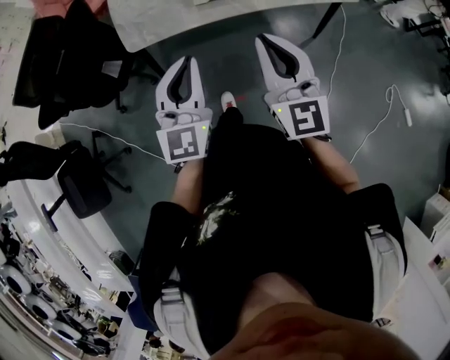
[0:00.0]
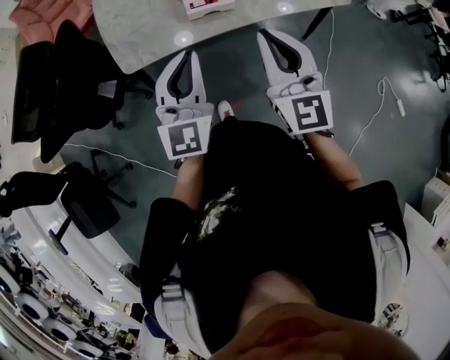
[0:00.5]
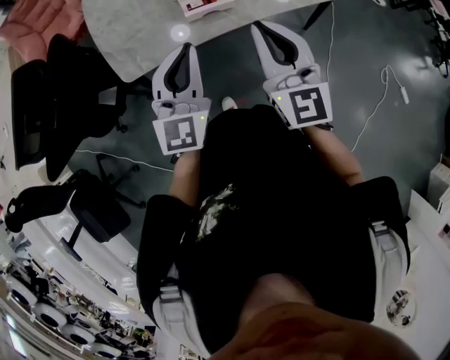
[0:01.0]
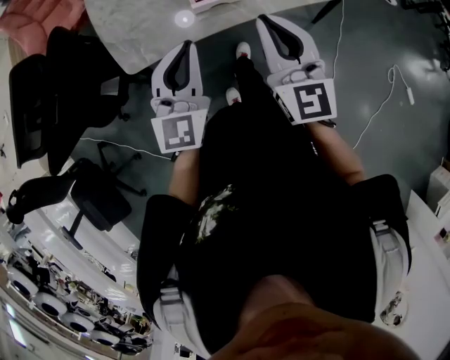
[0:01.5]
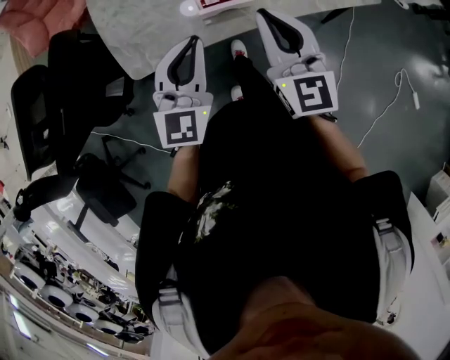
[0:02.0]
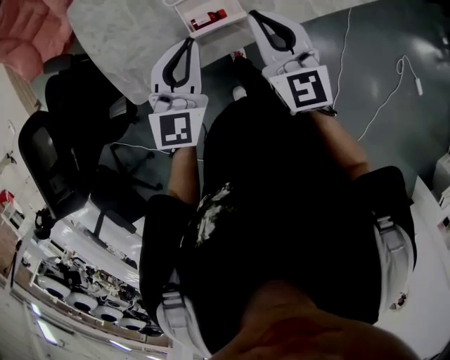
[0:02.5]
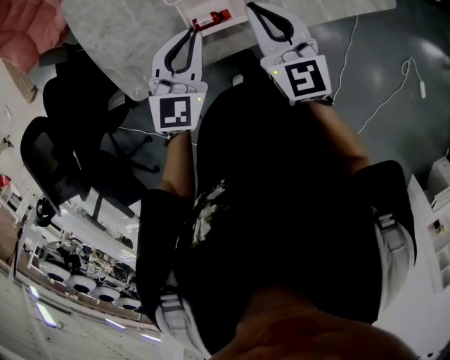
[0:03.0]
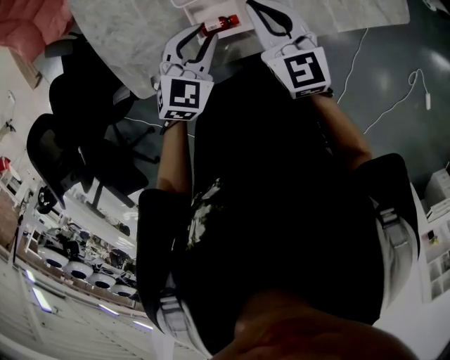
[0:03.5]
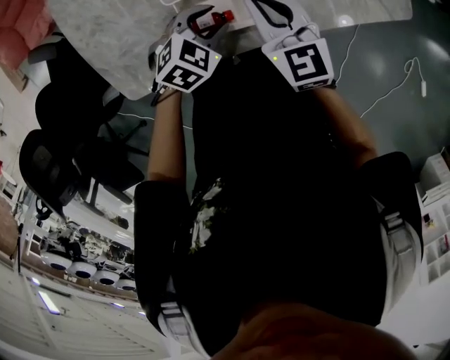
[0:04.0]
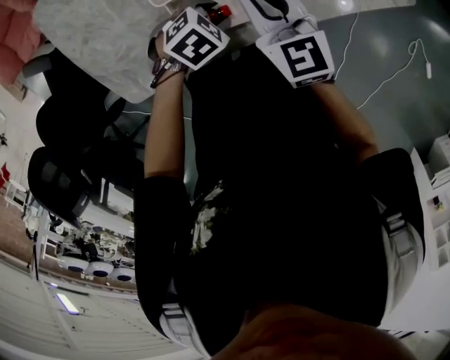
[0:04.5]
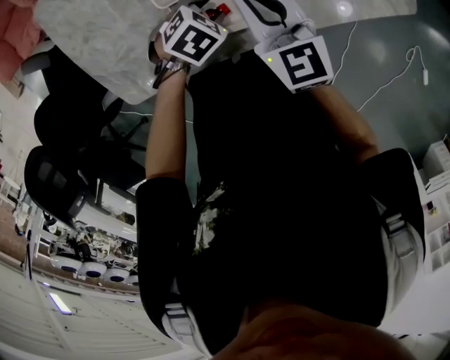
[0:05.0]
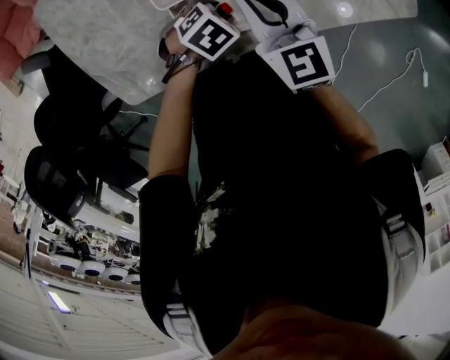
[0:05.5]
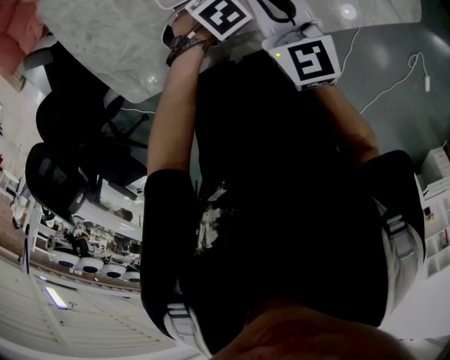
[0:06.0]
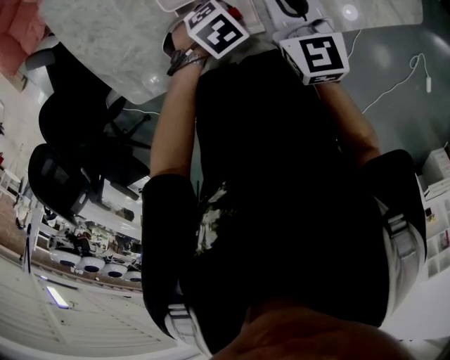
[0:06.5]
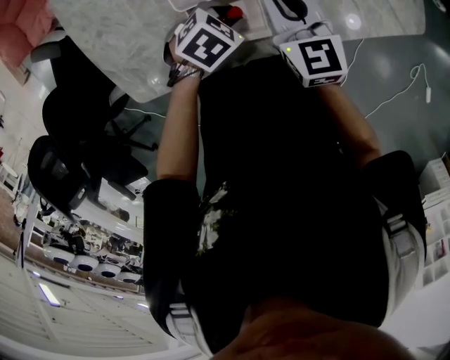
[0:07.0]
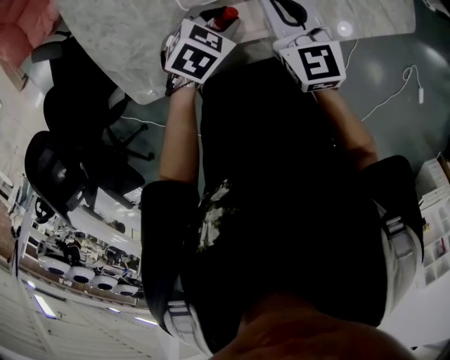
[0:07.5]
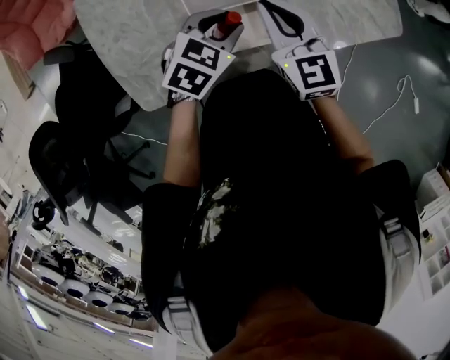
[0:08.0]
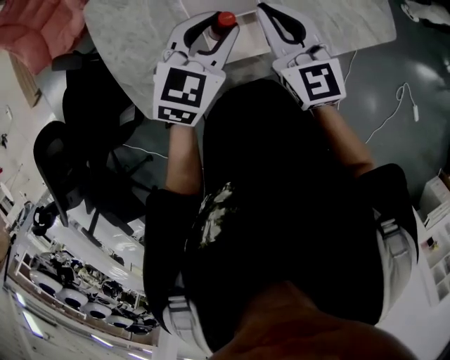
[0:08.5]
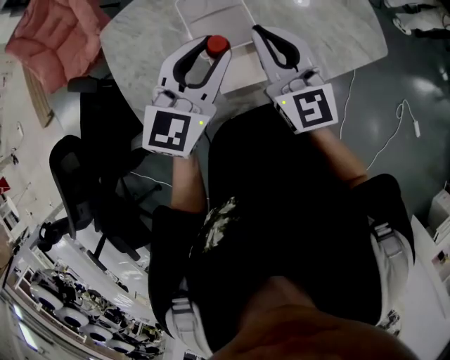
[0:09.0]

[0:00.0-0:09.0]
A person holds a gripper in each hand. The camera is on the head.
0:00.0 to 0:02.0: The grippers both shift forward by some 25 cm.
0:02.0 to 0:04.5: The left gripper travels downward by approximately 30 cm, tilts its fingers some 50 degrees downward, and opens; the right gripper shifts by roughly 30 cm, and changes its angle by some 20 degrees.
0:04.5 to 0:07.0: There are only small adjustments of the grippers.
0:07.0 to 0:09.0: The right gripper shifts some 20 cm upward, and turns by approximately 20 degrees; the left gripper moves upward, approximately 35 cm, and points its fingers some 50 degrees further upward.

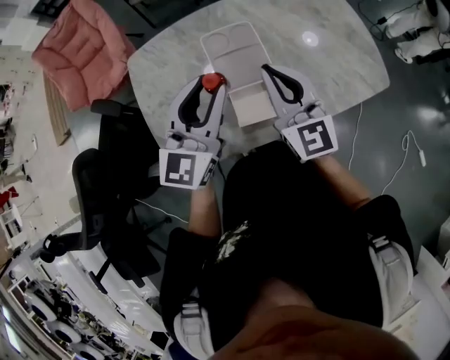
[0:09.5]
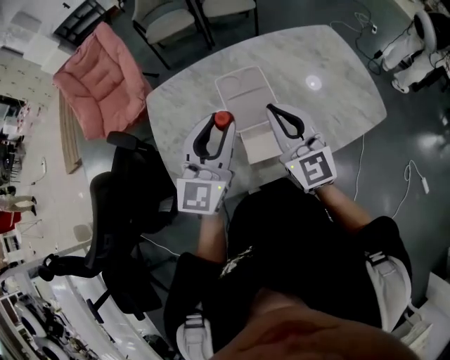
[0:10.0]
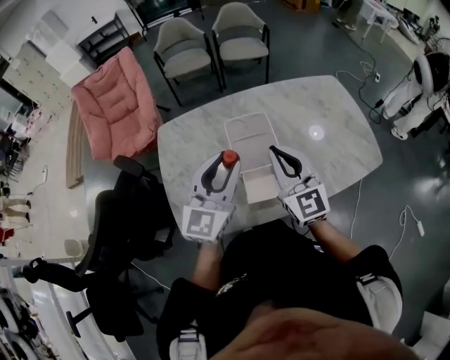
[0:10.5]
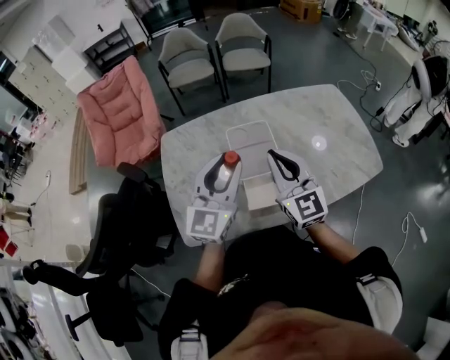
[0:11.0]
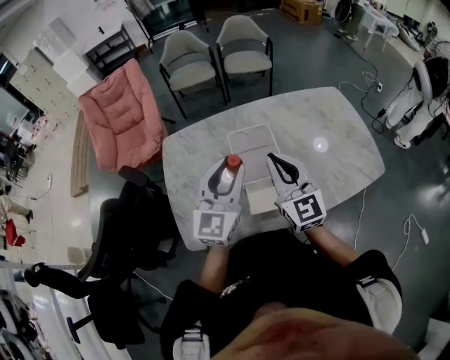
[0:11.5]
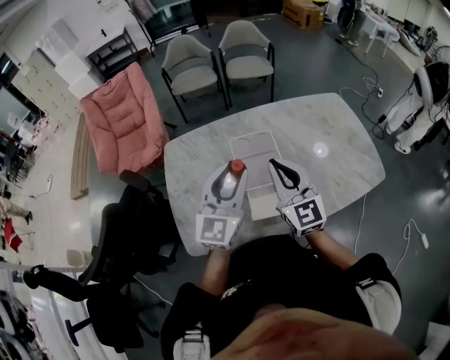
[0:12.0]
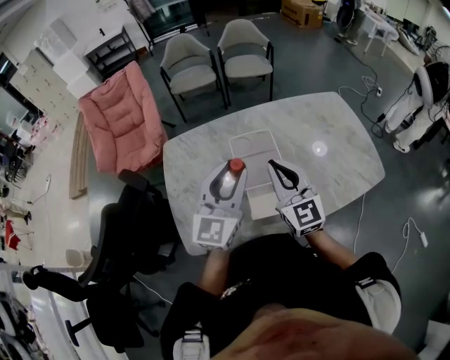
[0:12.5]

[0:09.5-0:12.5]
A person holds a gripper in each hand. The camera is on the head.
0:09.5 to 0:12.5: The grippers move only a little.

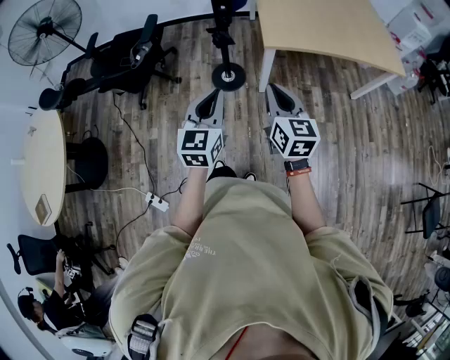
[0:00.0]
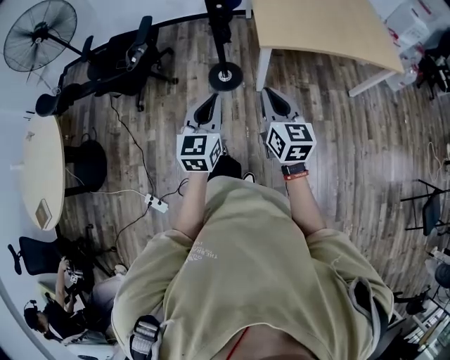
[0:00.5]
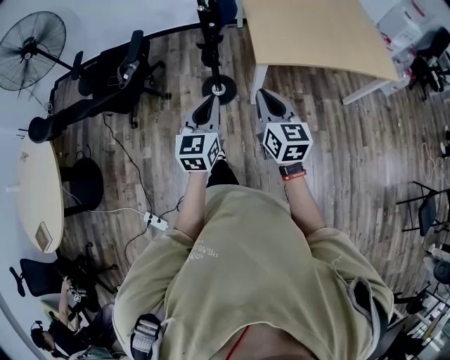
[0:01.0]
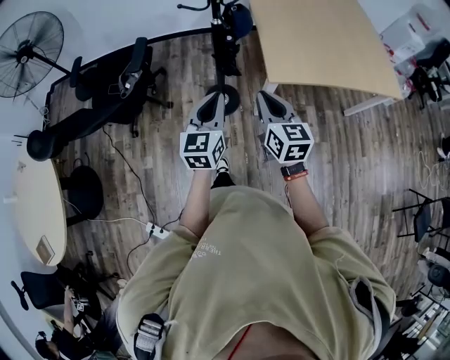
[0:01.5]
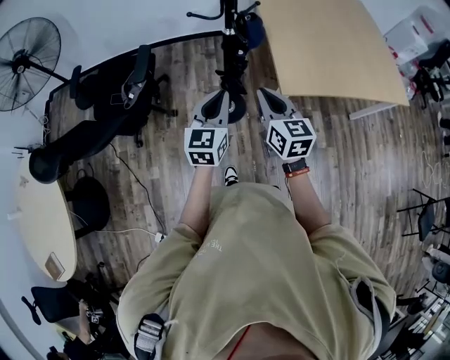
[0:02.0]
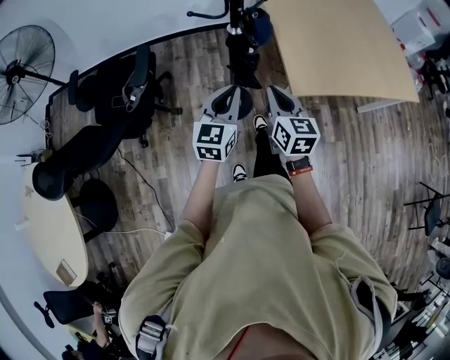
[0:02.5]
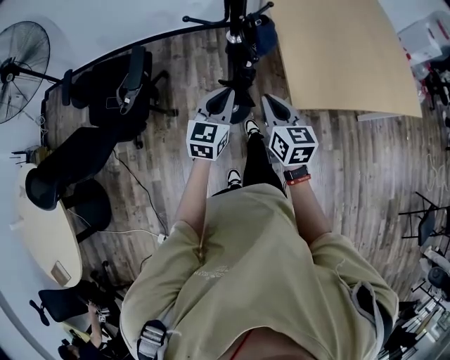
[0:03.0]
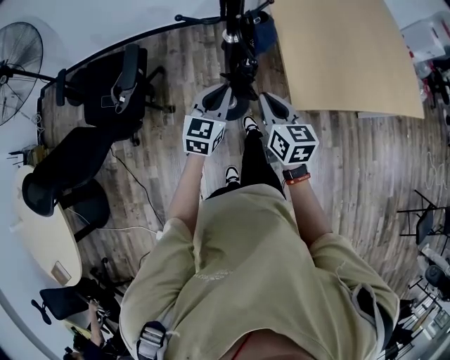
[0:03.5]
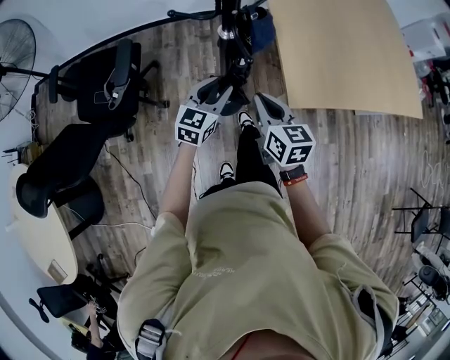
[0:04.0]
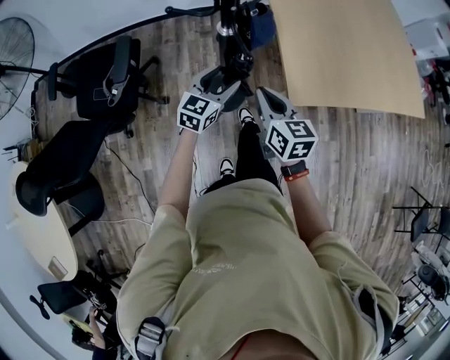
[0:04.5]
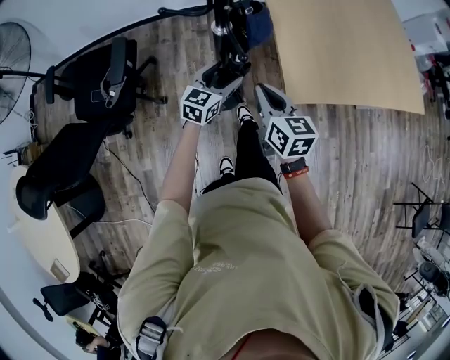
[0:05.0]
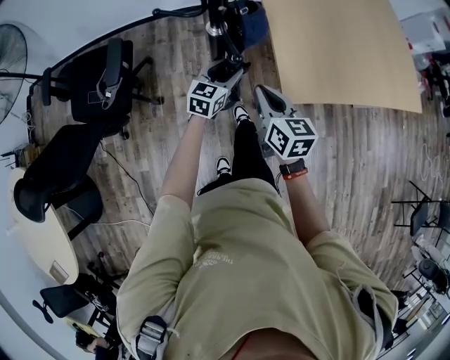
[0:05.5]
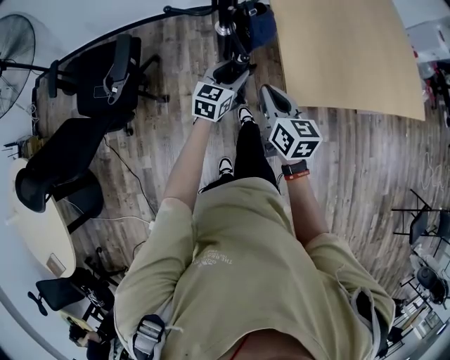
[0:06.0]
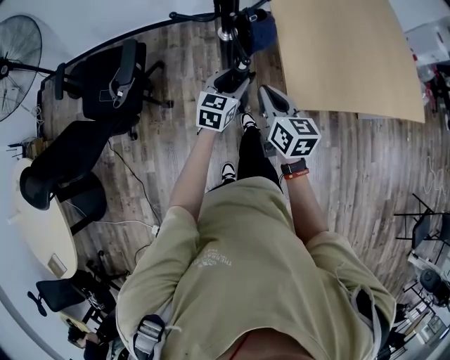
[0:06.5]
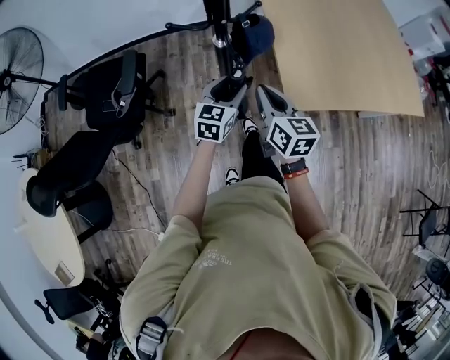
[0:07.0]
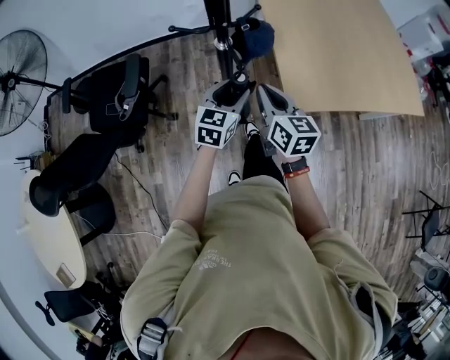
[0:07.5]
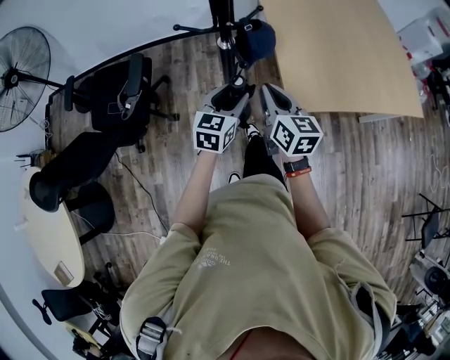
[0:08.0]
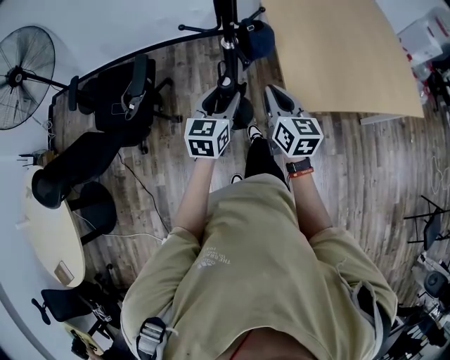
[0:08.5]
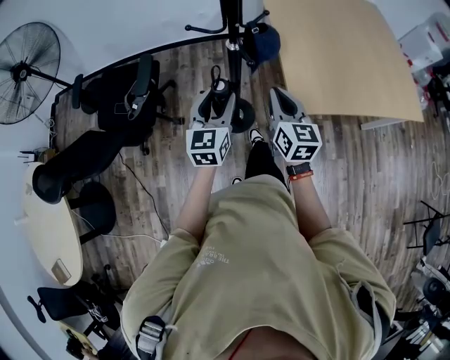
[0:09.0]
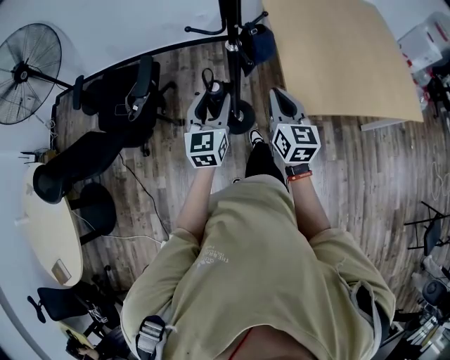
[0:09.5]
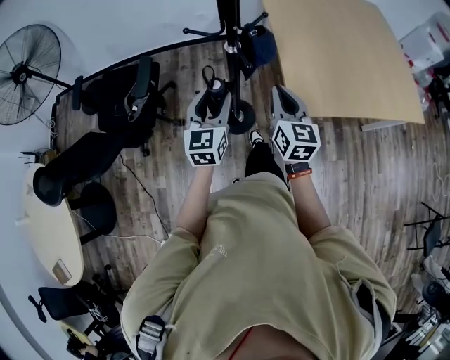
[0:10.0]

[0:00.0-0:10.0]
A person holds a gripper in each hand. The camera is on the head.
0:00.0 to 0:02.0: The left gripper moves forward, about 35 cm; the right gripper moves forward and to the left, about 35 cm.
0:02.0 to 0:04.0: The two grippers go some 25 cm forward and downward. The left gripper opens its fingers.
0:04.0 to 0:06.0: The left gripper is displaced forward by some 5 cm.
0:06.0 to 0:08.0: The left gripper is displaced upward and backward by about 15 cm. Meanwhile the right gripper heads upward, covering some 5 cm.
0:08.0 to 0:10.0: The left gripper travels to the left and upward by roughly 10 cm, and rotates approximately 20 degrees.

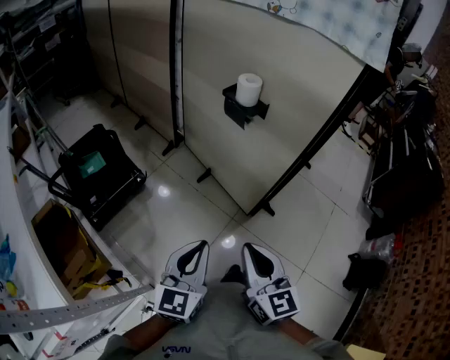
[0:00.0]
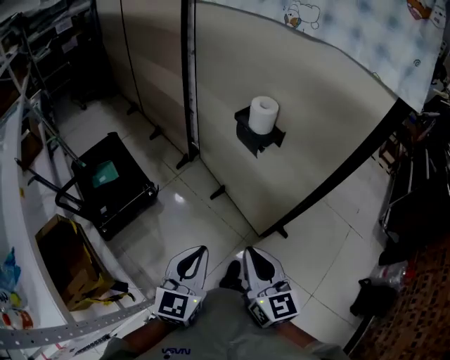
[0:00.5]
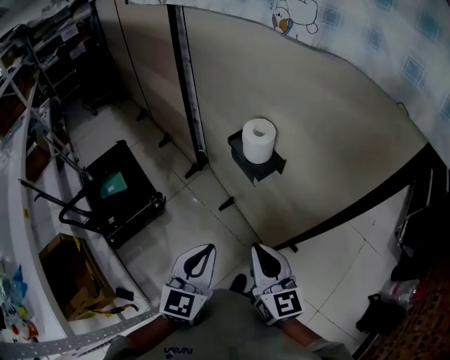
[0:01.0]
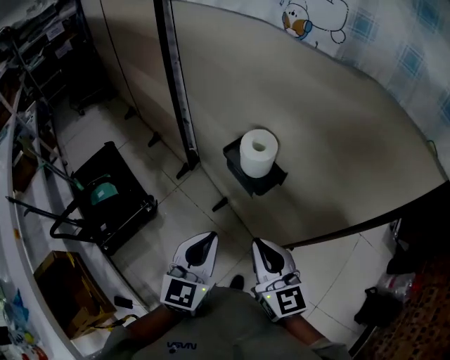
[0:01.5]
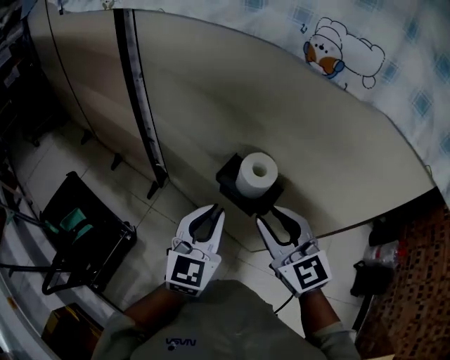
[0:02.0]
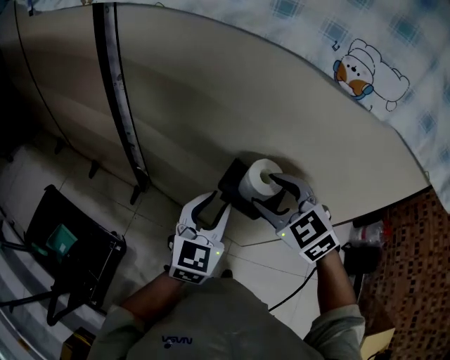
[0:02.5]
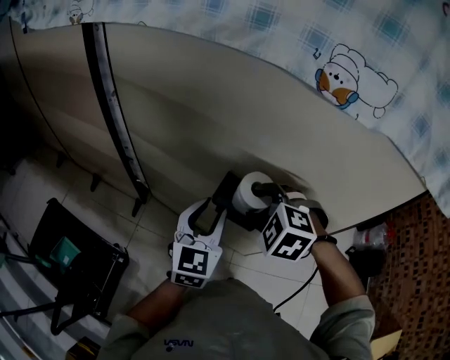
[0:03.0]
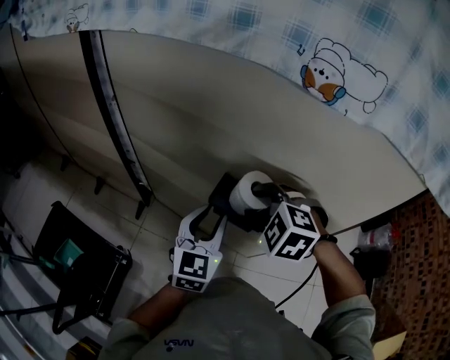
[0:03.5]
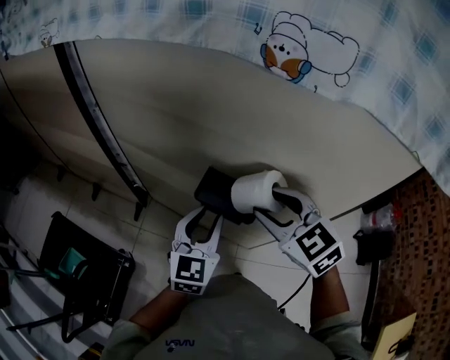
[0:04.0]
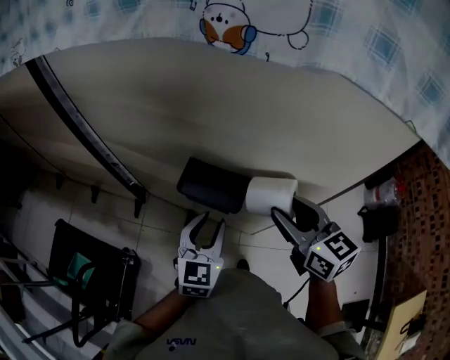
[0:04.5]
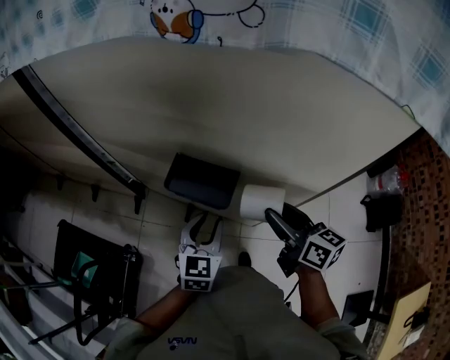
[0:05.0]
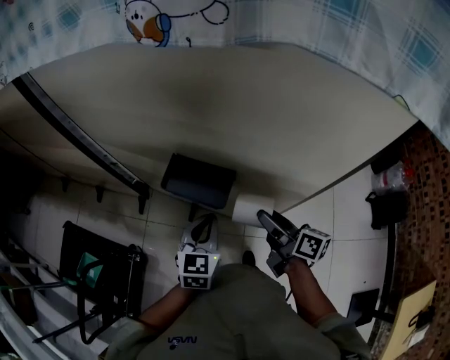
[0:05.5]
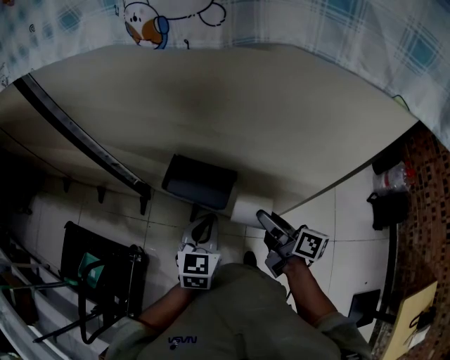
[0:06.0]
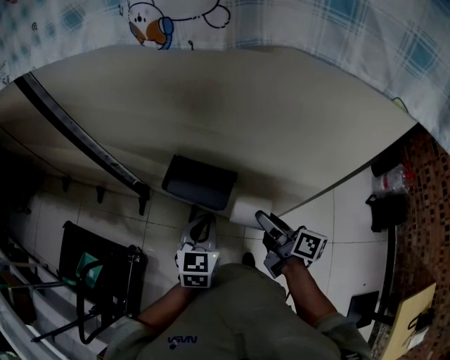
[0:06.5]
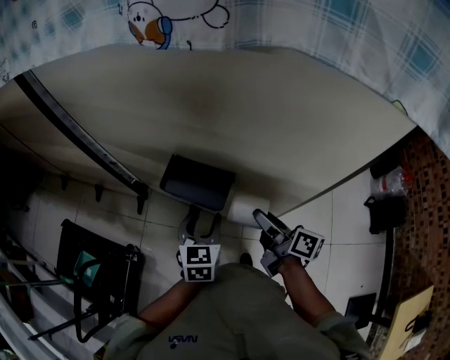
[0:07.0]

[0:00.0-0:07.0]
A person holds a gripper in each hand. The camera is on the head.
0:00.0 to 0:02.0: The pair of grippers is taken forward, approximately 50 cm. The right gripper opens its fingers.
0:02.0 to 0:03.5: The two grippers go roughly 10 cm forward. The right gripper points its fingers about 40 degrees further downward. The left gripper opens.
0:03.5 to 0:05.0: The left gripper moves downward and to the right, about 15 cm. Meanwhile the right gripper shifts about 20 cm to the right and backward, and rolls clockwise, seen from behind, by roughly 80 degrees.
0:05.0 to 0:07.0: The right gripper goes approximately 5 cm downward, and rotates approximately 30 degrees. Meanwhile the left gripper opens.
